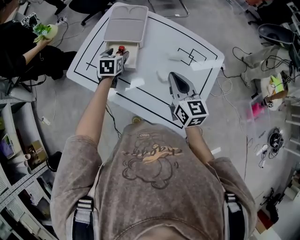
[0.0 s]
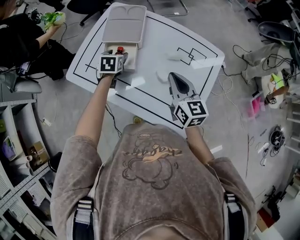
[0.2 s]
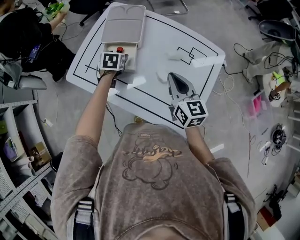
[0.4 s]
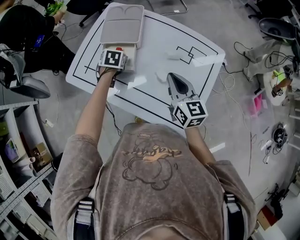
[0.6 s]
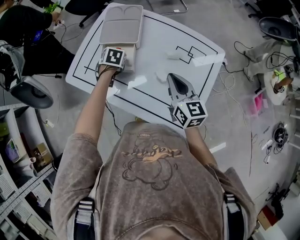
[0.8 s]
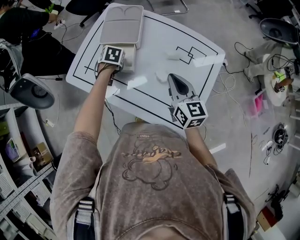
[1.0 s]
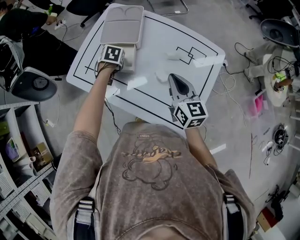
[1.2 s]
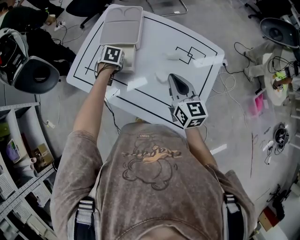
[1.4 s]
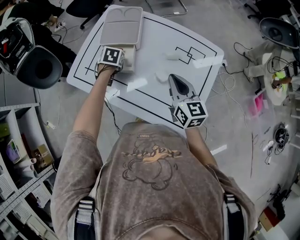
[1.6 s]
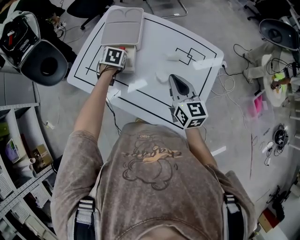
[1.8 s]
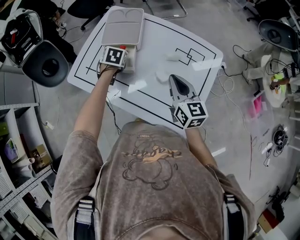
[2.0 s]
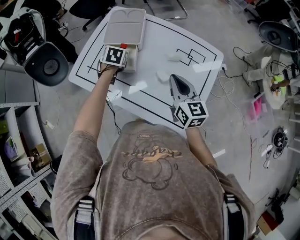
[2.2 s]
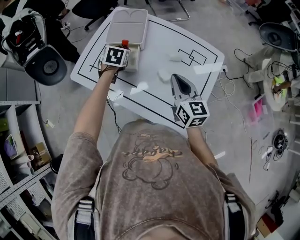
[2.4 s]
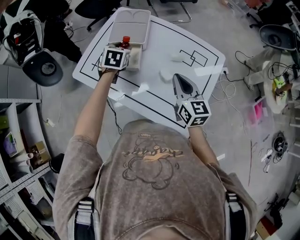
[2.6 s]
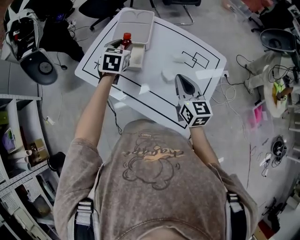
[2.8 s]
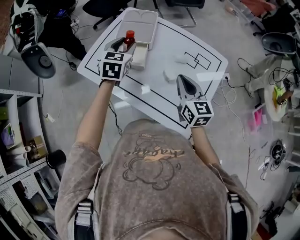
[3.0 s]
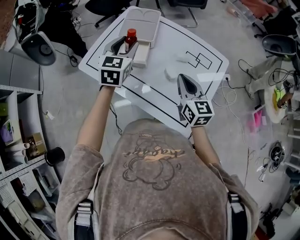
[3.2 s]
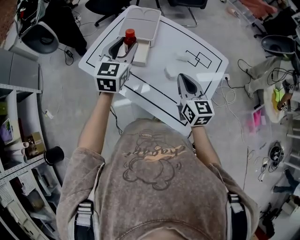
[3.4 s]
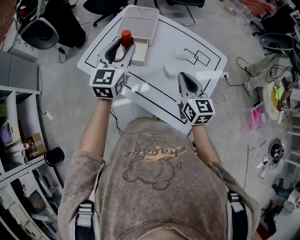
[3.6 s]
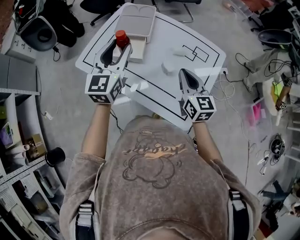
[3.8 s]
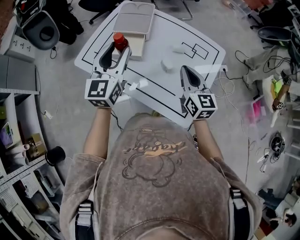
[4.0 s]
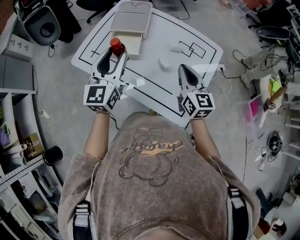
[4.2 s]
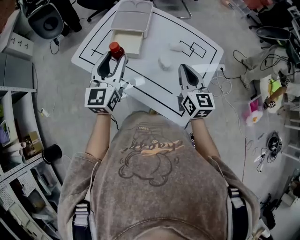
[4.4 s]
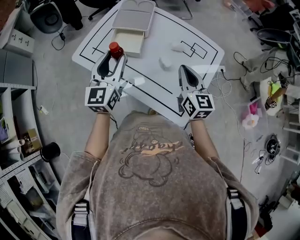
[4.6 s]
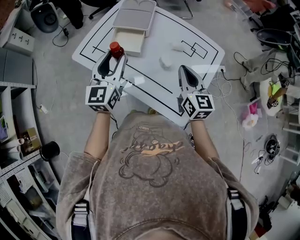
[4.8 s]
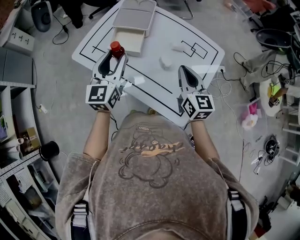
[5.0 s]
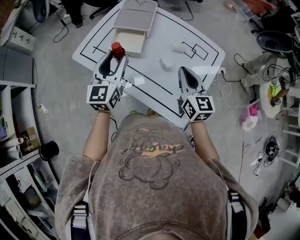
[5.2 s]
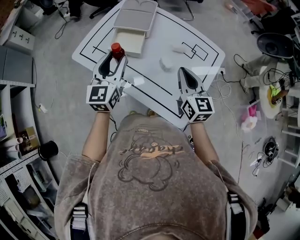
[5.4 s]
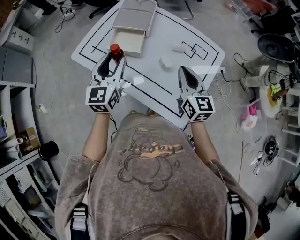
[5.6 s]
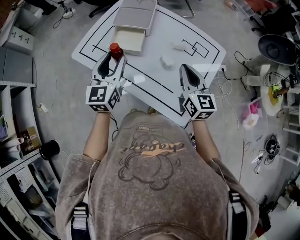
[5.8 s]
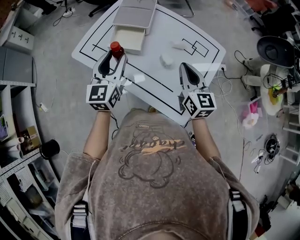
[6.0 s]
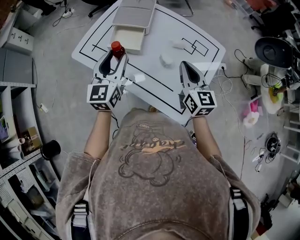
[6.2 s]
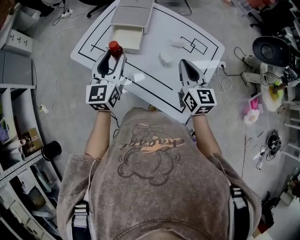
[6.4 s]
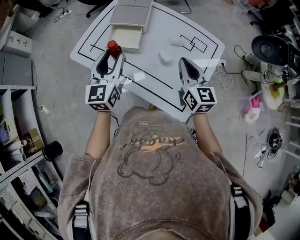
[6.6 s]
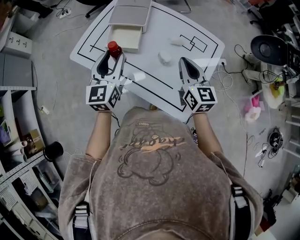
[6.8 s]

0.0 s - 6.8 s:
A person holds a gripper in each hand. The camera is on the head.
0.0 s - 1.4 s: The left gripper swivels approximately 30 degrees.
1.4 s - 2.8 s: The left gripper heads upward, covering roughly 15 cm, and tilts its fingers approximately 30 degrees upward.
2.8 s - 4.0 s: The left gripper moves backward and upward, roughly 20 cm, and points its fingers about 30 degrees further upward.
4.0 s - 5.4 s: The left gripper is displaced downward by about 5 cm.
5.4 s - 6.8 s: Both grippers stay put.

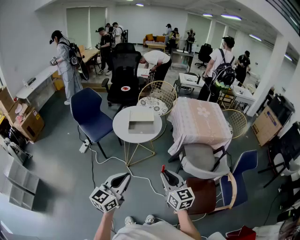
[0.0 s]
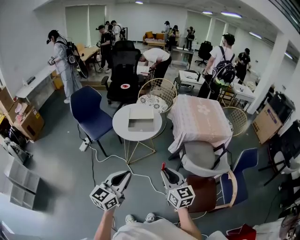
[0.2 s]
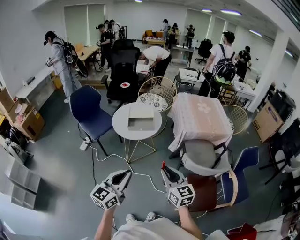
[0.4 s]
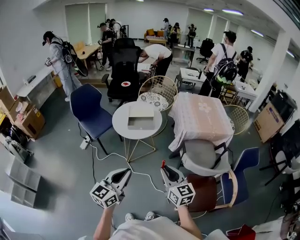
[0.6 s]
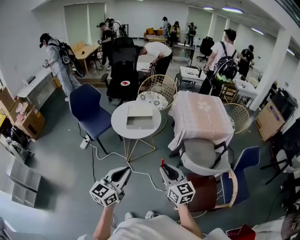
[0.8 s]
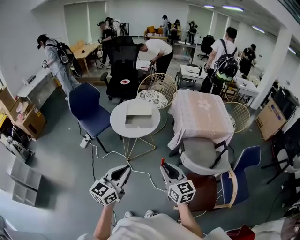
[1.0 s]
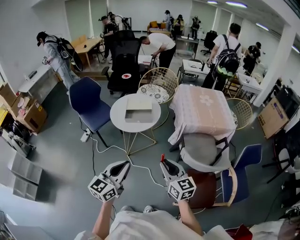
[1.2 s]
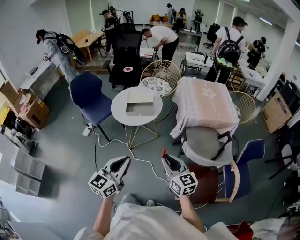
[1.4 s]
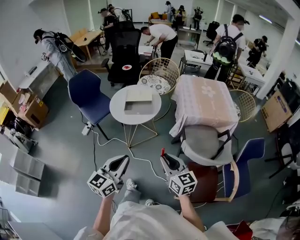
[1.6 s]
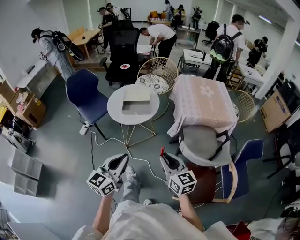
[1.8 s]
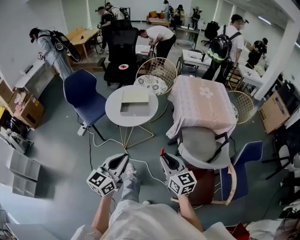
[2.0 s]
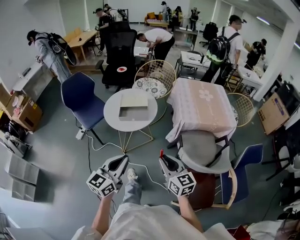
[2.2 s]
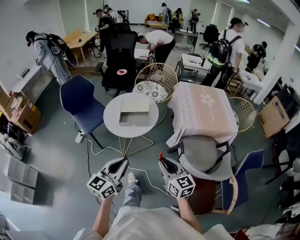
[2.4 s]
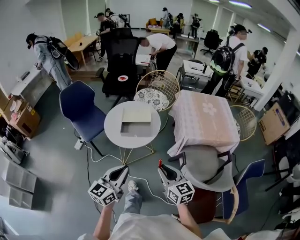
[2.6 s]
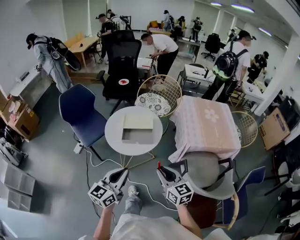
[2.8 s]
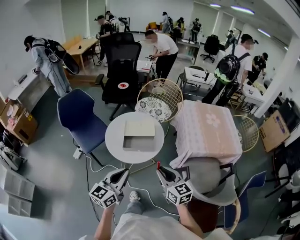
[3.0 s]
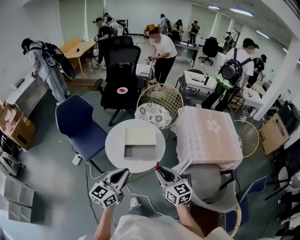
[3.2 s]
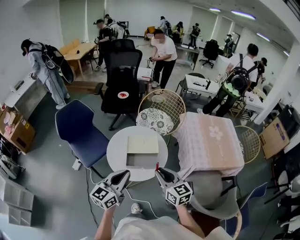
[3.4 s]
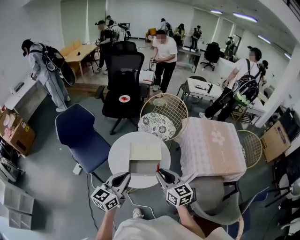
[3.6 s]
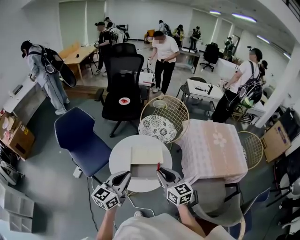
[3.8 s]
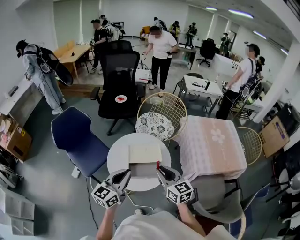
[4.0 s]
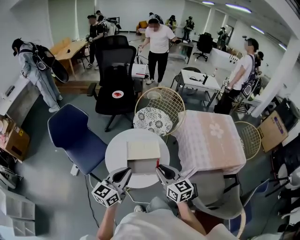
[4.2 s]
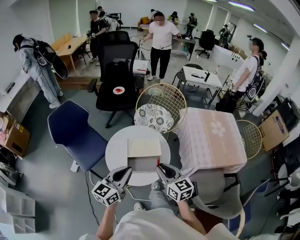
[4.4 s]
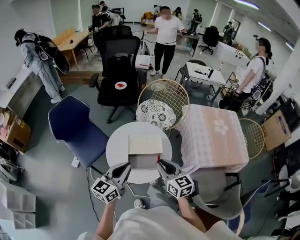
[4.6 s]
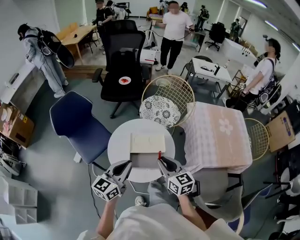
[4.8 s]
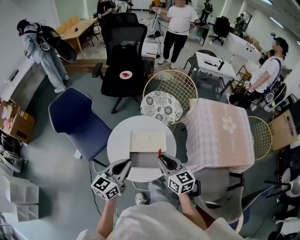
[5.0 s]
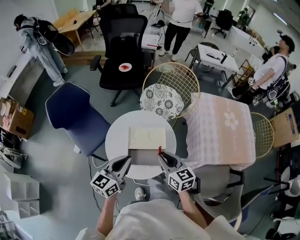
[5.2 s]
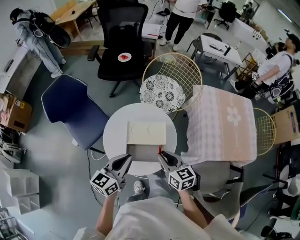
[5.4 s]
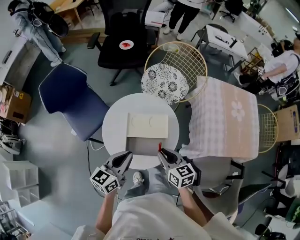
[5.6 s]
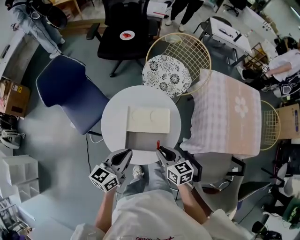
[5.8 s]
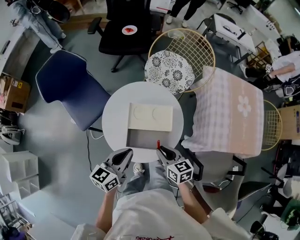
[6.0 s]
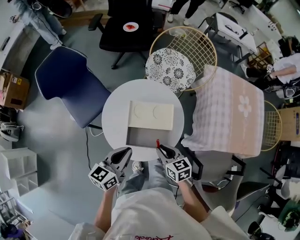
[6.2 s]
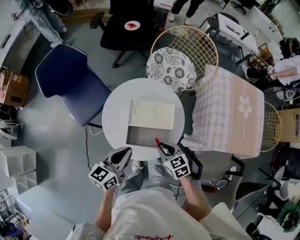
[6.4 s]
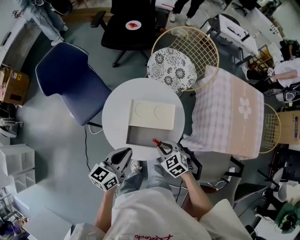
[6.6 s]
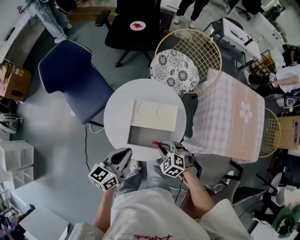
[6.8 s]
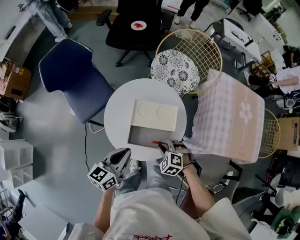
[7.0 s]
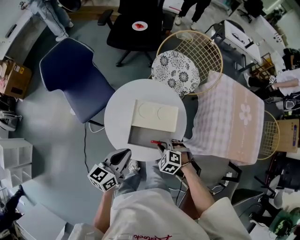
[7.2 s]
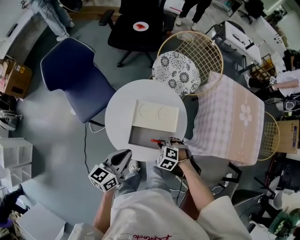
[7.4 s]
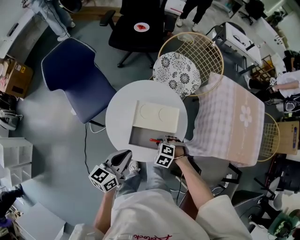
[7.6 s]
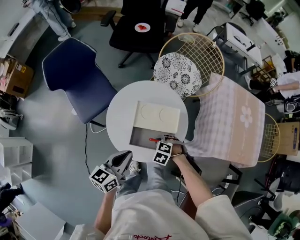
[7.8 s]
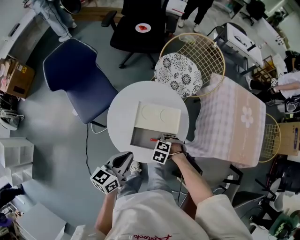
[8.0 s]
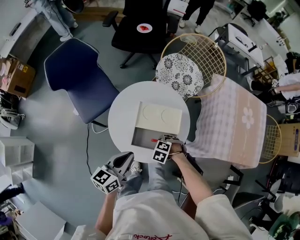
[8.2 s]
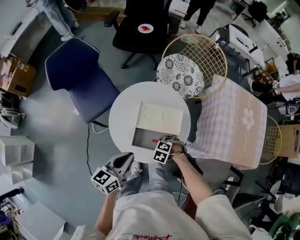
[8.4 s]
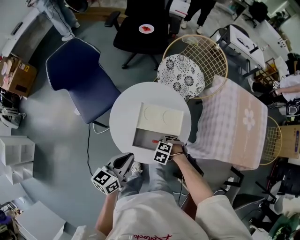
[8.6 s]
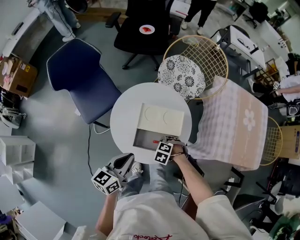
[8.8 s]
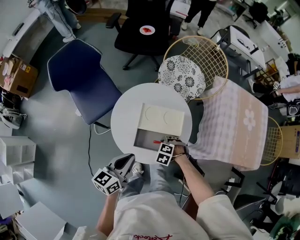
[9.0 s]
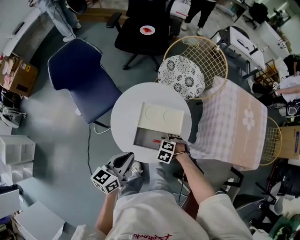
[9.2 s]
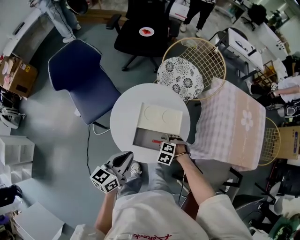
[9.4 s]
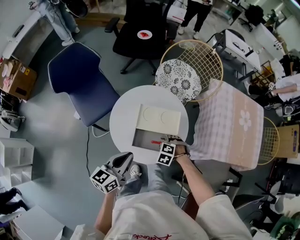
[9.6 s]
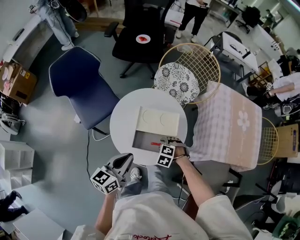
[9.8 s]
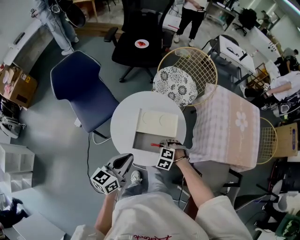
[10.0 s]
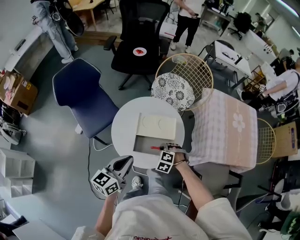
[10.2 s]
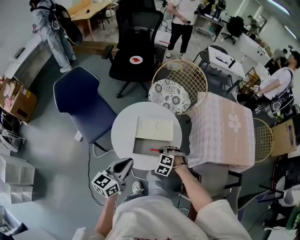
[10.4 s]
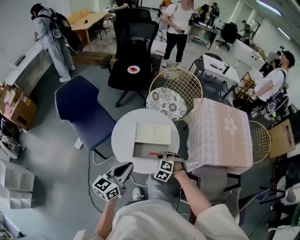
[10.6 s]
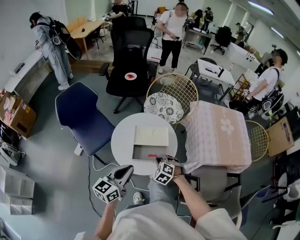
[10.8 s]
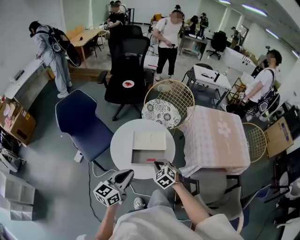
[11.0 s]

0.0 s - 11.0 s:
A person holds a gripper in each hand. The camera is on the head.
0.0 s - 1.6 s: The two grippers go about 5 cm to the right.
1.6 s - 3.2 s: The grippers both shift forward by approximately 30 cm.
3.2 s - 4.8 s: The grippers both shift forward by approximately 15 cm.
4.8 s - 6.2 s: The right gripper is displaced downward by about 15 cm, and changes its angle by roughly 30 degrees. The left gripper heads downward, covering approximately 10 cm.
6.2 s - 7.8 s: The right gripper goes about 10 cm downward, and rolls counterclockwise, seen from behind, by roughly 60 degrees.
7.8 s - 9.4 s: The right gripper opens up.
9.4 s - 11.0 s: The right gripper shifts roughly 15 cm upward, tilts its fingers some 30 degrees upward, and closes its fingers, while the left gripper shifts some 10 cm upward.

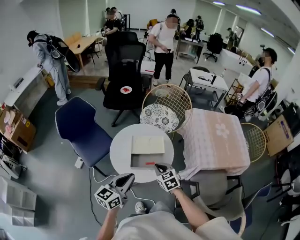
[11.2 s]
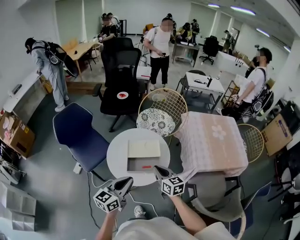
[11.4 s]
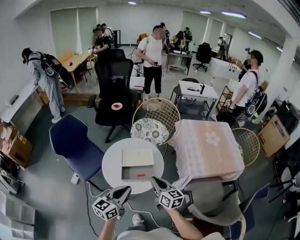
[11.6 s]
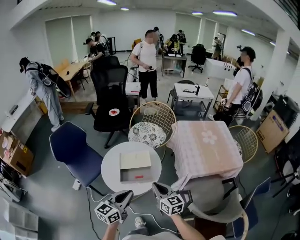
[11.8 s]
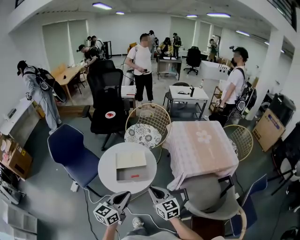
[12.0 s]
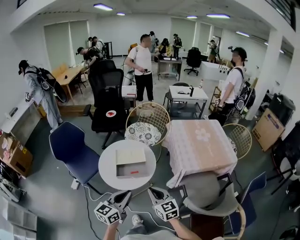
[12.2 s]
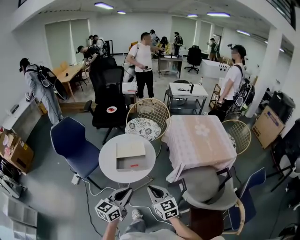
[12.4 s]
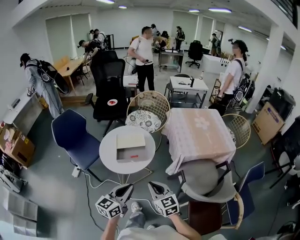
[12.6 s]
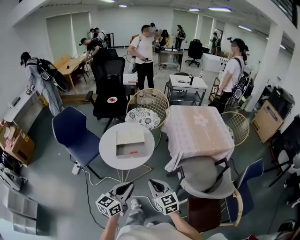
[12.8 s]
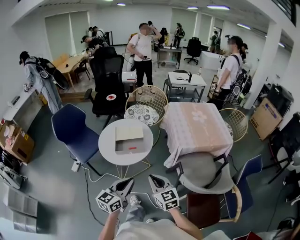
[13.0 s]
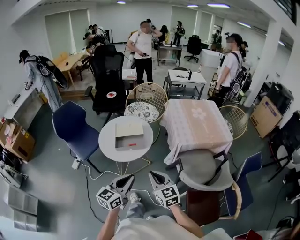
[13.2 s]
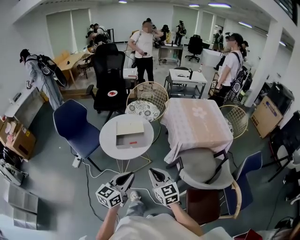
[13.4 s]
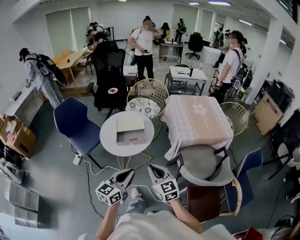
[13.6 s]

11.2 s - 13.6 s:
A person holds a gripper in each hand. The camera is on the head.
11.2 s - 12.4 s: The right gripper is displaced backward, upward and to the right by roughly 20 cm, and changes its angle by approximately 30 degrees. Meanwhile the left gripper moves backward and to the right, approximately 15 cm.
12.4 s - 13.6 s: Both grippers travel together backward, about 10 cm.

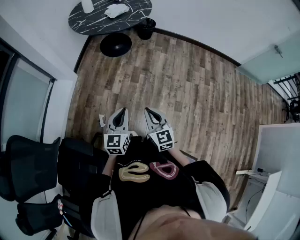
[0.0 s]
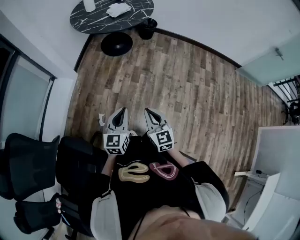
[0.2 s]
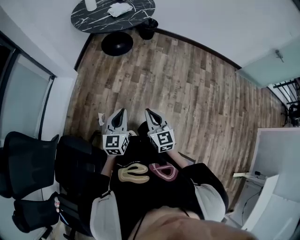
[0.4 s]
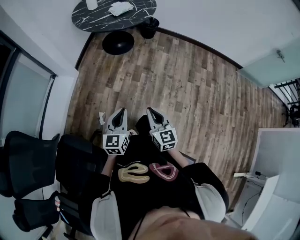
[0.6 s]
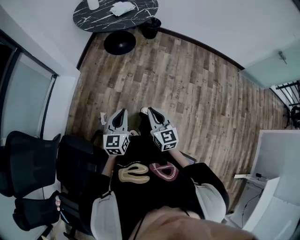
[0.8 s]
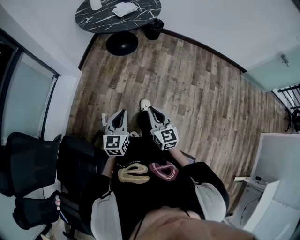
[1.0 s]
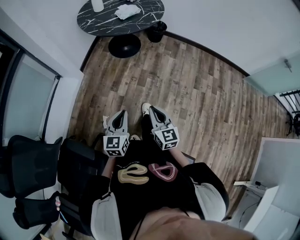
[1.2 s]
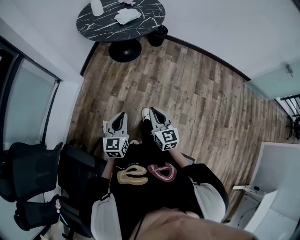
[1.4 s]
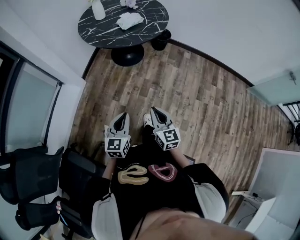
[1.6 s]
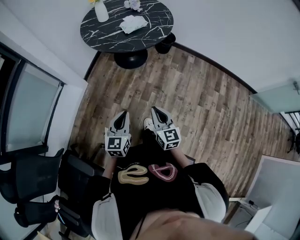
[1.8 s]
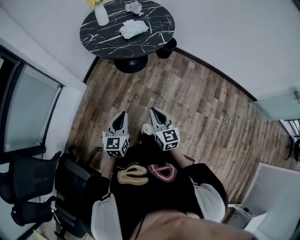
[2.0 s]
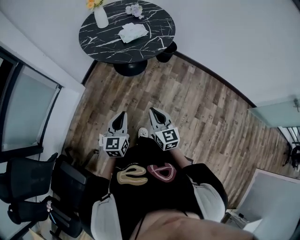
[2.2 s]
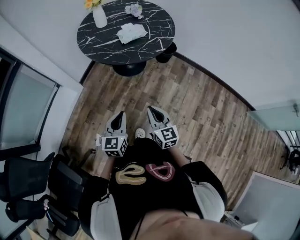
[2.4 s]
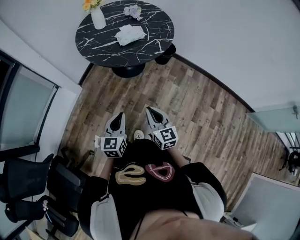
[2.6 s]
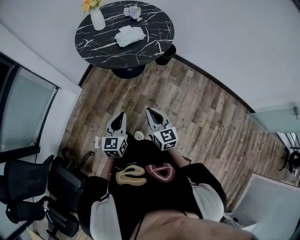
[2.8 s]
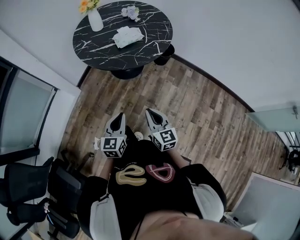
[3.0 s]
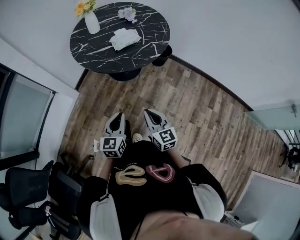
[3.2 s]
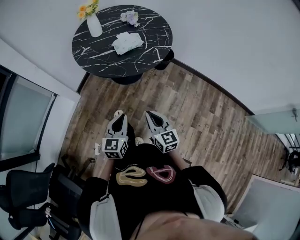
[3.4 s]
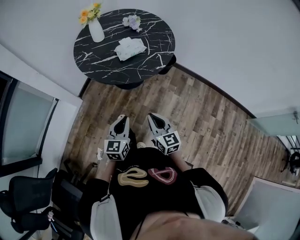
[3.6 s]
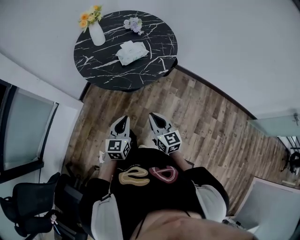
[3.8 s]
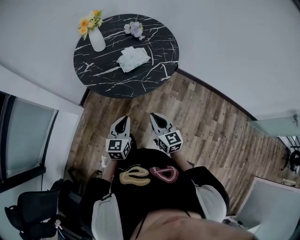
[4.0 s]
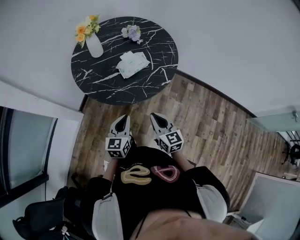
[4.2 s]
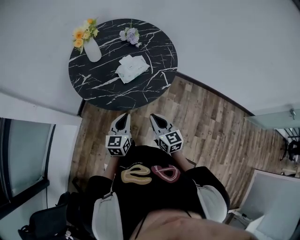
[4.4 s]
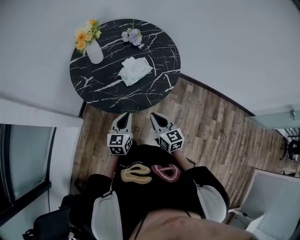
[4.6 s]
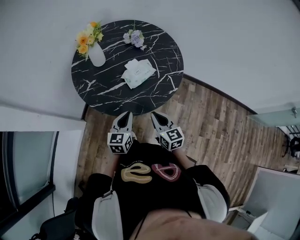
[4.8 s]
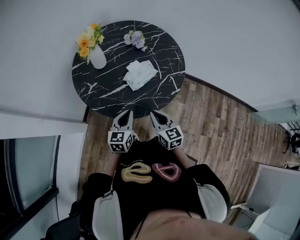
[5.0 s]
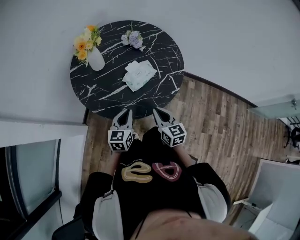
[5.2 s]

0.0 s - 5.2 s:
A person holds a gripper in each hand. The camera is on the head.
0.0 s - 1.8 s: Both grippers travel together forward, about 25 cm.
1.8 s - 3.4 s: The left gripper heads forward and to the right, covering about 20 cm. Meanwhile the right gripper travels forward by roughly 20 cm.
3.4 s - 5.2 s: The two grippers go roughly 30 cm forward.
